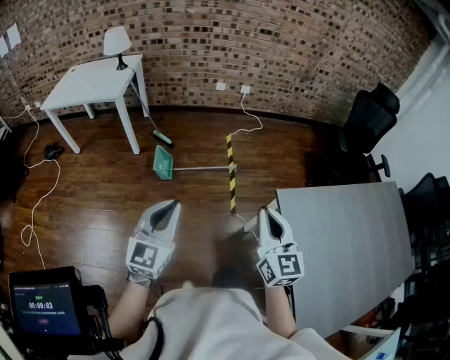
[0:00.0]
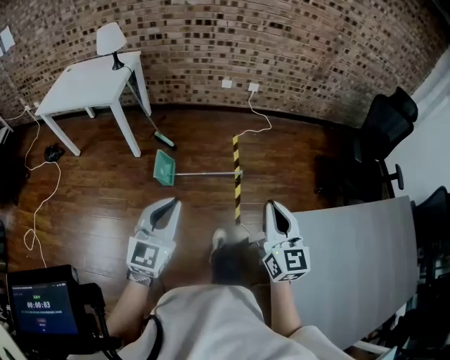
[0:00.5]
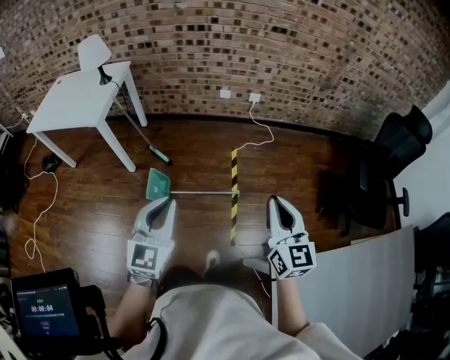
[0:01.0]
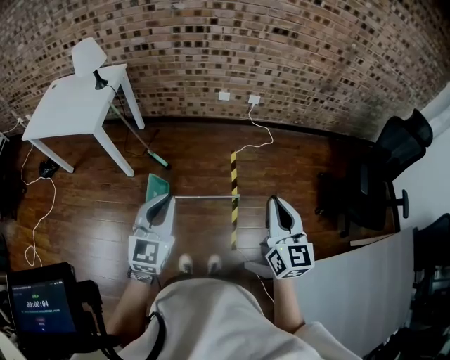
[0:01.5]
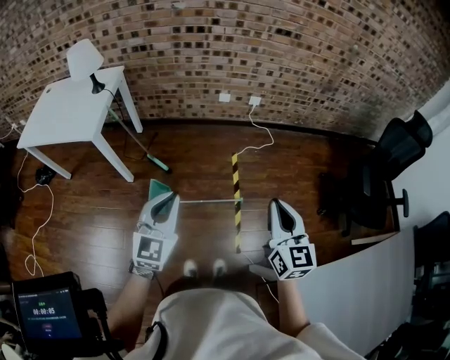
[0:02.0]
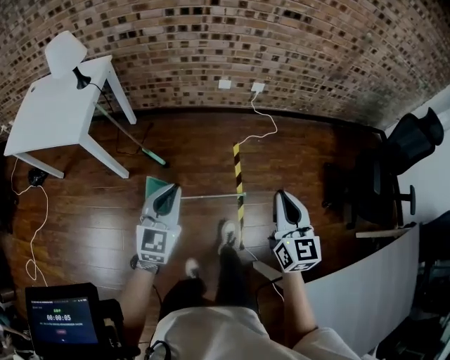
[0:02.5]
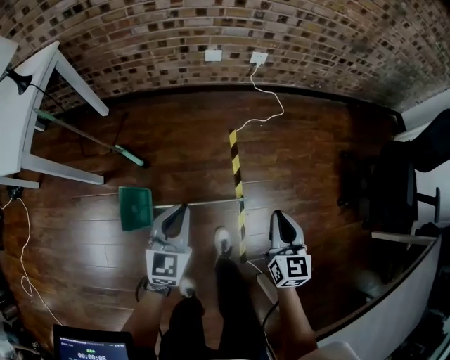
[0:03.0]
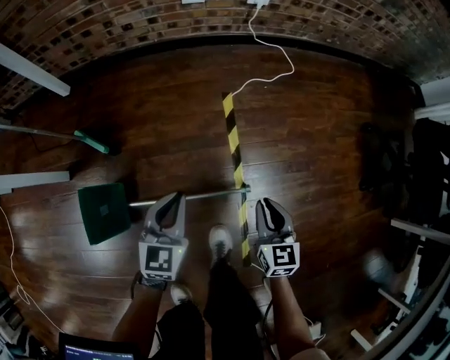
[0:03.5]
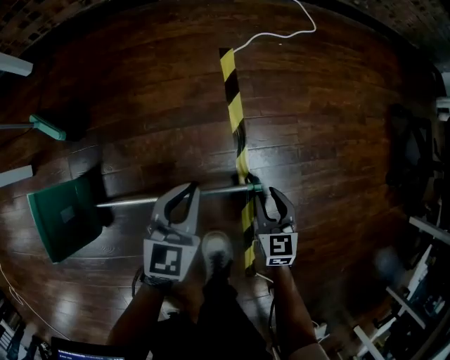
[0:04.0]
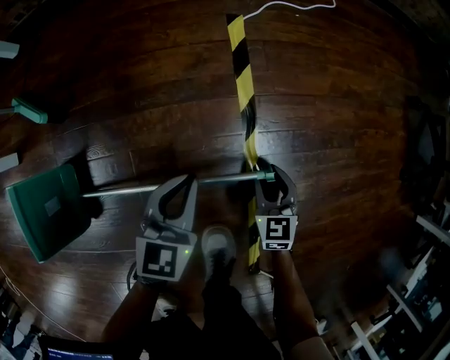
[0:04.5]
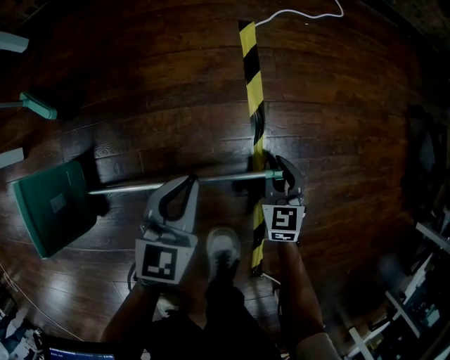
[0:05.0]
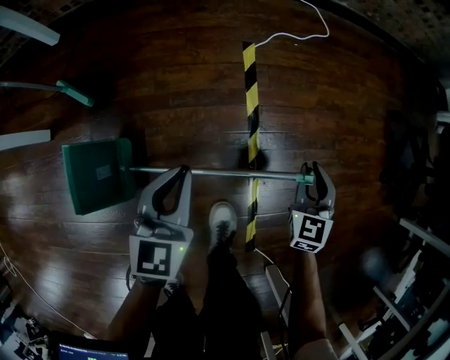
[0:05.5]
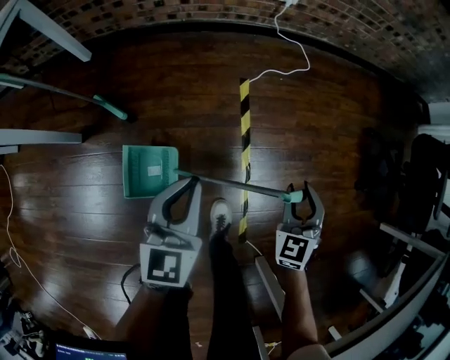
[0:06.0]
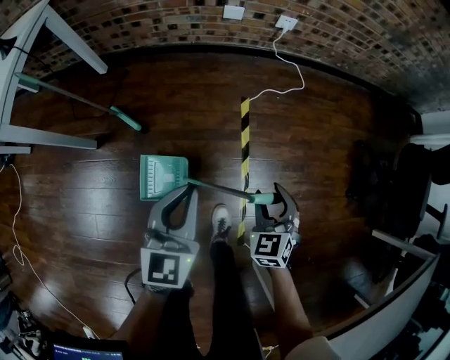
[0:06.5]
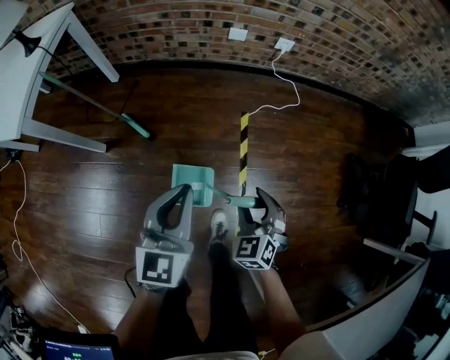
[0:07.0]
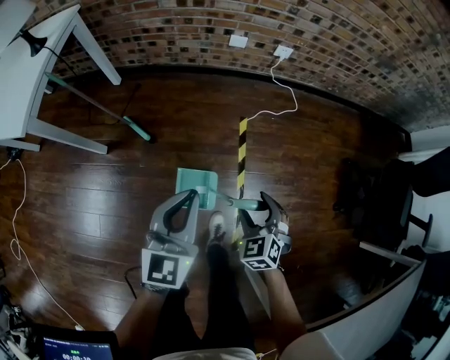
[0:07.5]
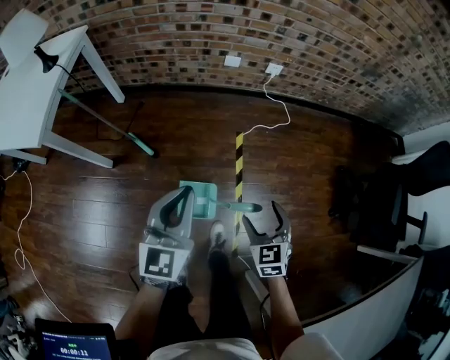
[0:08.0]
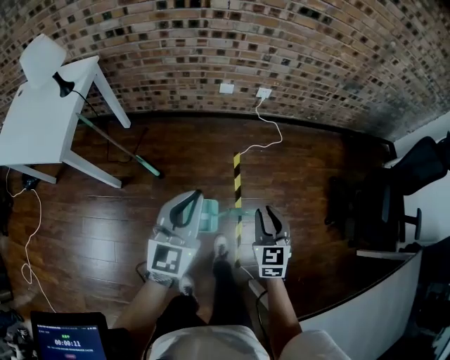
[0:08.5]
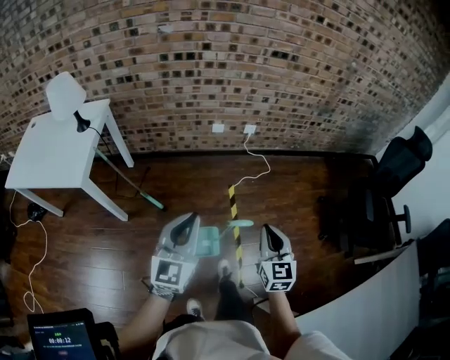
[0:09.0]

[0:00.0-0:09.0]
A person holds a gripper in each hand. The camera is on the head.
0:00.0 to 0:02.0: The two grippers travel together, forward, approximately 50 cm.
0:02.0 to 0:04.5: The grippers both shift downward by about 90 cm. The left gripper turns by about 30 degrees, while the right gripper tilts its fingers approximately 30 degrees downward, and opens up.
0:04.5 to 0:07.0: Both grippers move upward, some 60 cm. The right gripper rotates roughly 30 degrees; the left gripper changes its angle by roughly 20 degrees.
0:07.0 to 0:09.0: The two grippers go approximately 30 cm upward. The right gripper turns by some 40 degrees, and closes up.

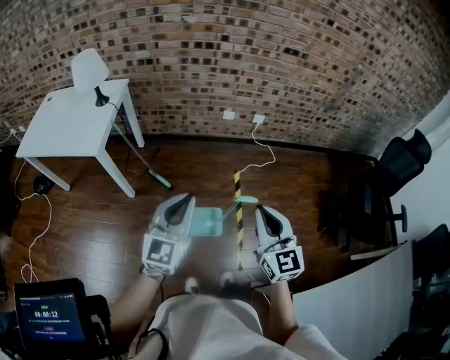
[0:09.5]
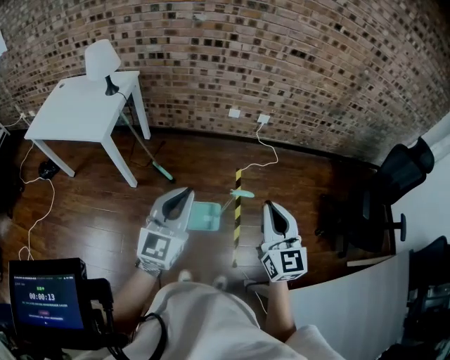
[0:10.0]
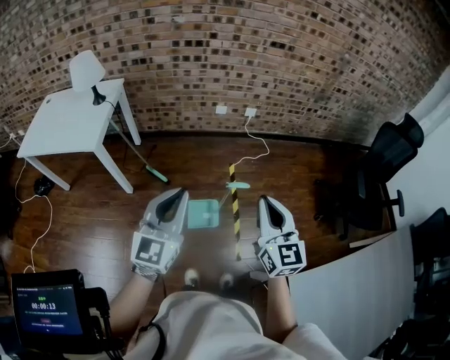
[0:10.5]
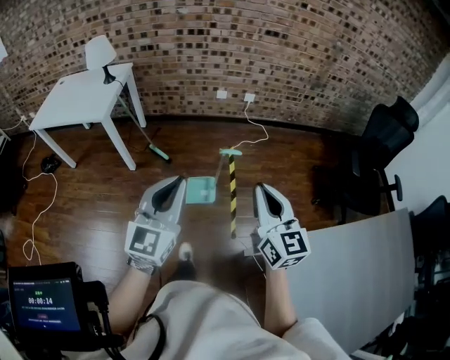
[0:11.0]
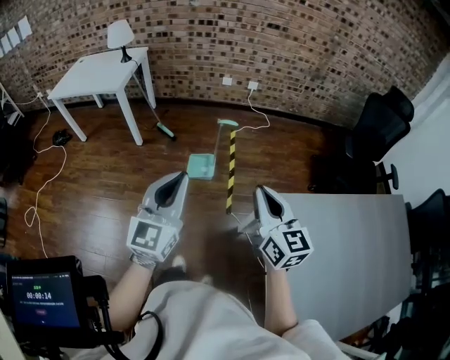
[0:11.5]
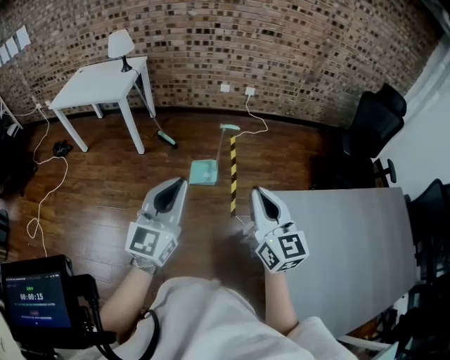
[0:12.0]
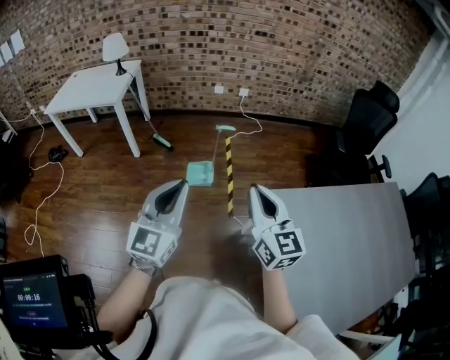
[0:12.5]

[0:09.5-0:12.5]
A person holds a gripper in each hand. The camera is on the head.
0:09.5 to 0:11.0: The grippers both shift backward by some 20 cm.
0:11.0 to 0:12.5: The two grippers go about 25 cm backward.

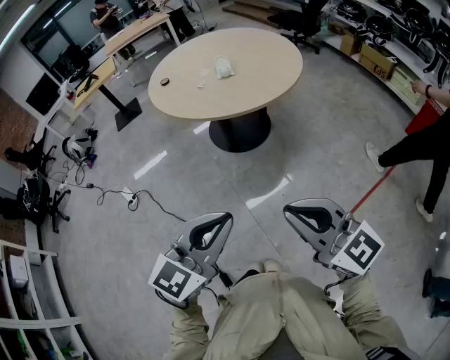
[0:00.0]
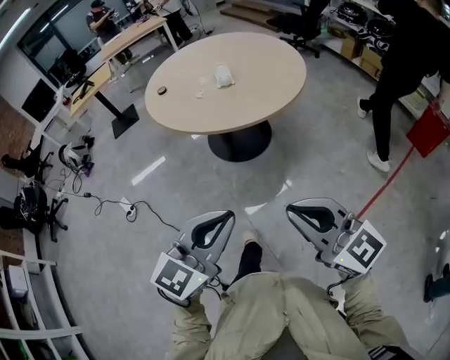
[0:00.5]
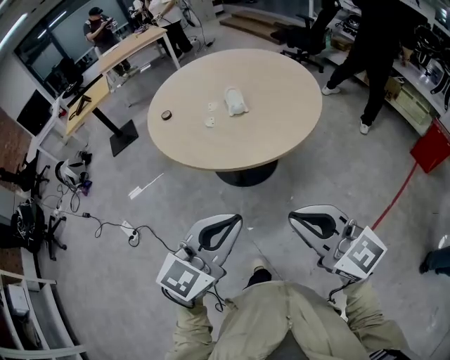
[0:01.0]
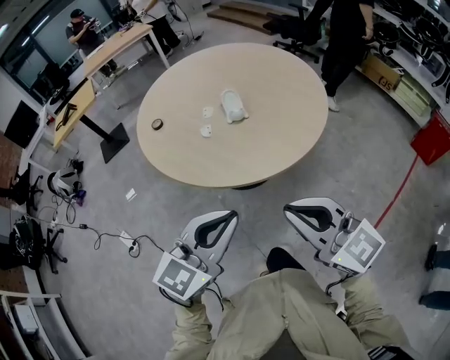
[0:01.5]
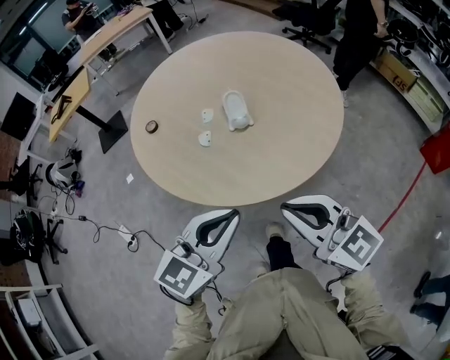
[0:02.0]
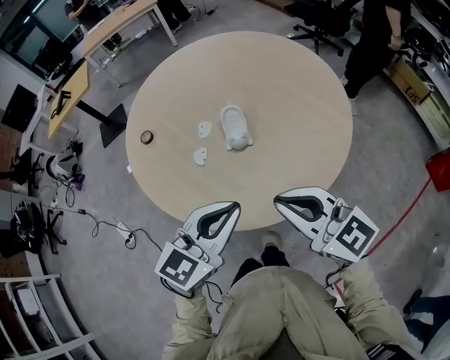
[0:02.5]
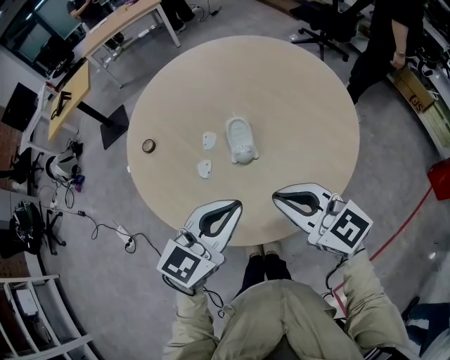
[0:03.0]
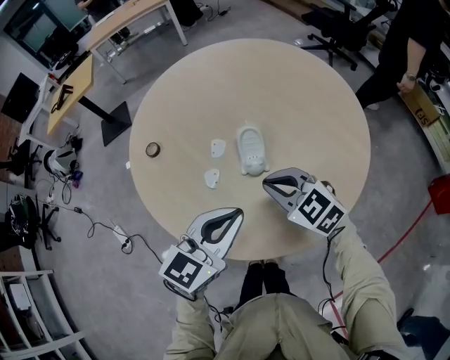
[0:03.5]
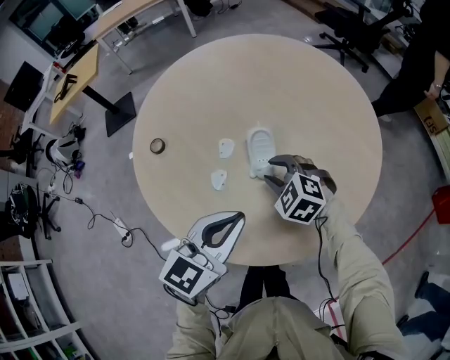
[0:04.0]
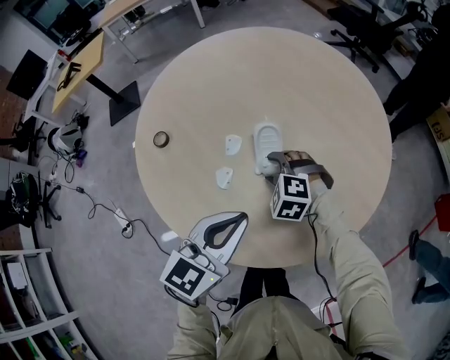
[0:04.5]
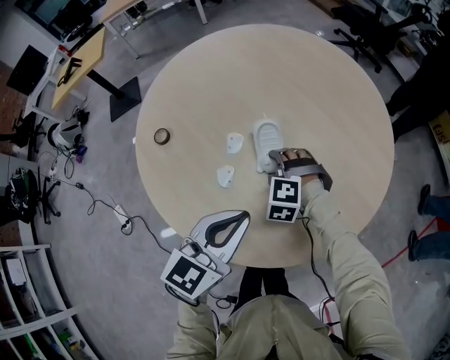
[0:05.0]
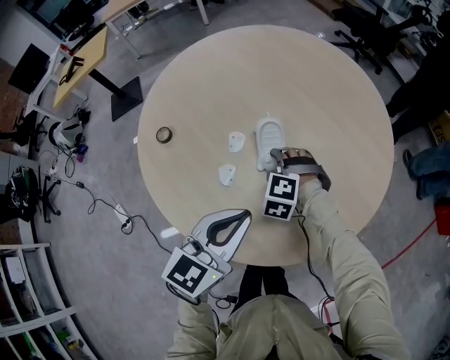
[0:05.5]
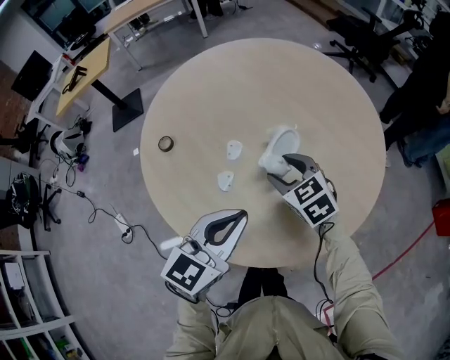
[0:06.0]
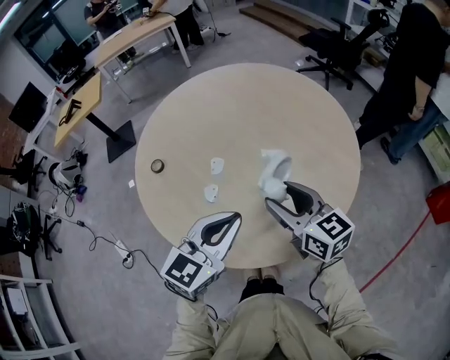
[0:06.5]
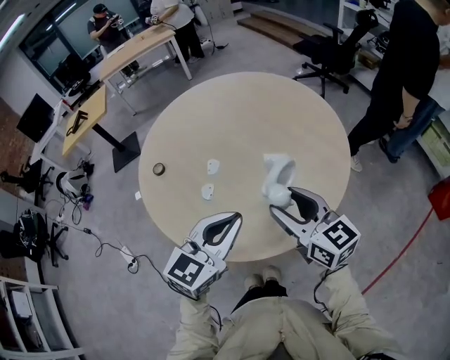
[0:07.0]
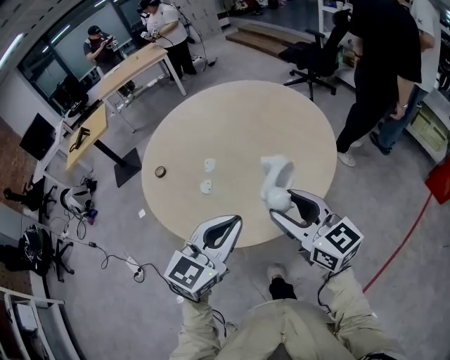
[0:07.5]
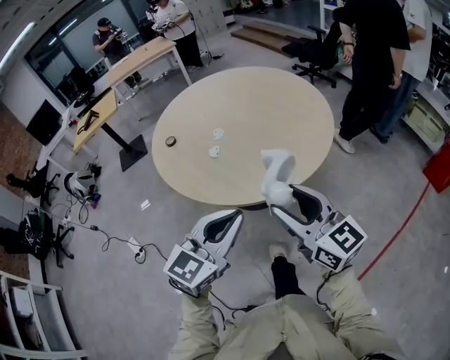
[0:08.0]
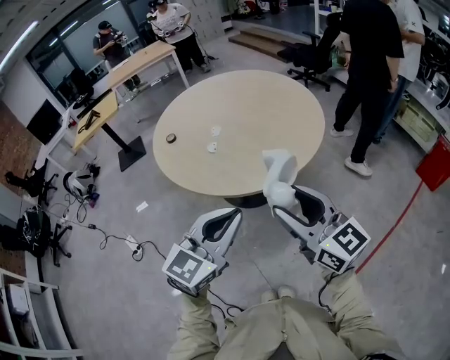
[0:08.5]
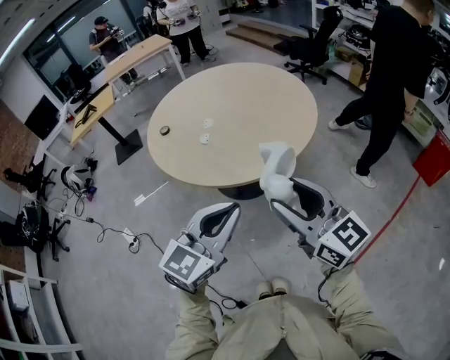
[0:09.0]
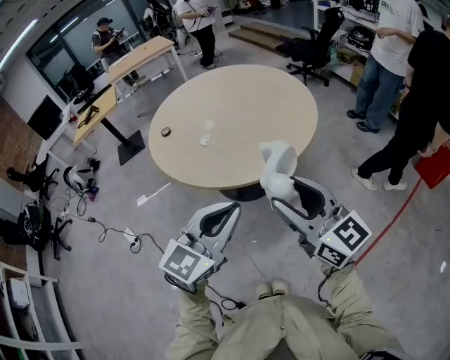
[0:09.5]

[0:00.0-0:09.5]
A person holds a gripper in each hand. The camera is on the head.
0:00.0 to 0:02.0: The two grippers travel together, forward, about 50 cm.
0:02.0 to 0:04.0: The right gripper shifts approximately 40 cm forward and downward, tilts its fingers approximately 40 degrees downward, and opens, while the left gripper goes approximately 20 cm forward.
0:04.0 to 0:05.5: The right gripper travels downward by approximately 5 cm, rotates about 30 degrees, and opens.
0:05.5 to 0:07.5: The right gripper shifts about 40 cm upward, backward and to the right, and angles its fingers upward, by roughly 60 degrees. The left gripper heads backward, upward and to the right, covering roughly 20 cm.
0:07.5 to 0:09.5: The two grippers go some 25 cm backward.

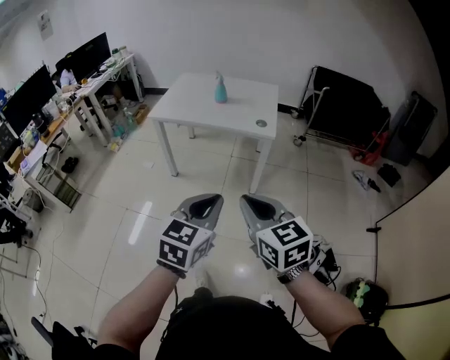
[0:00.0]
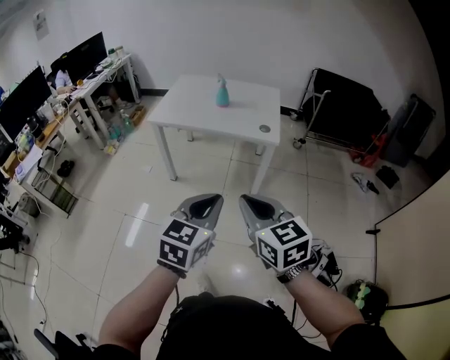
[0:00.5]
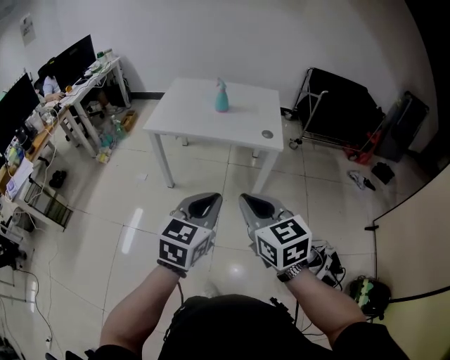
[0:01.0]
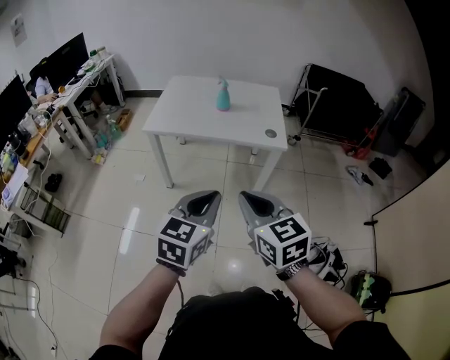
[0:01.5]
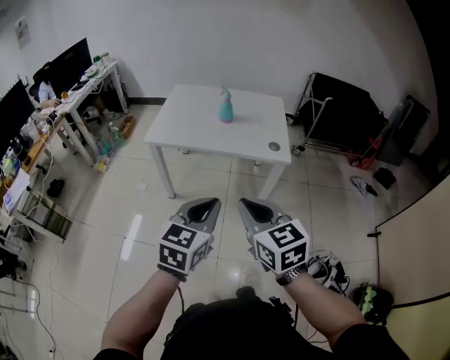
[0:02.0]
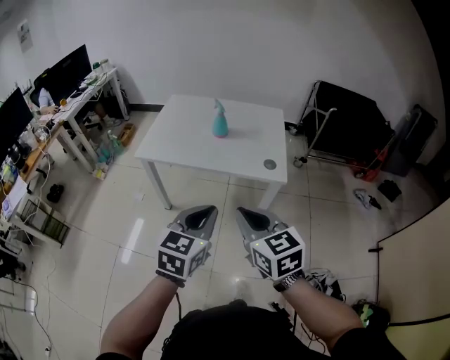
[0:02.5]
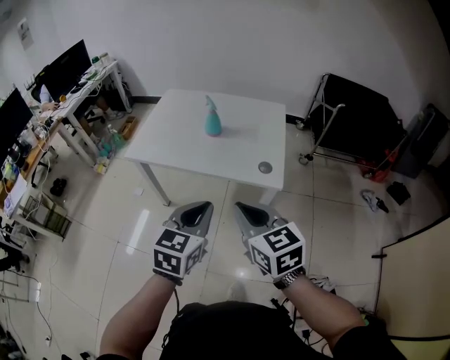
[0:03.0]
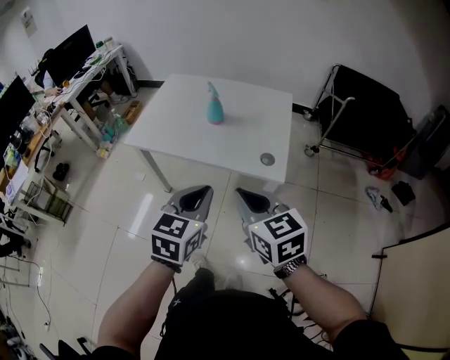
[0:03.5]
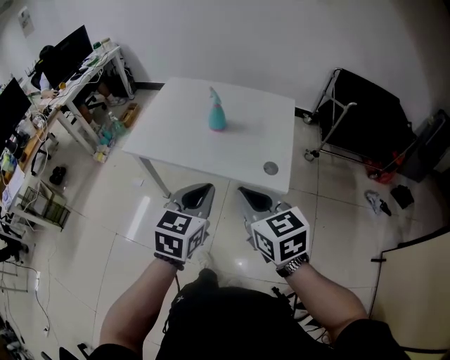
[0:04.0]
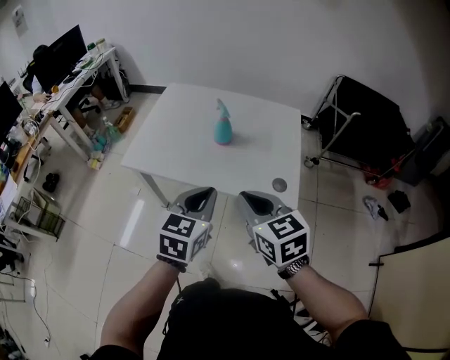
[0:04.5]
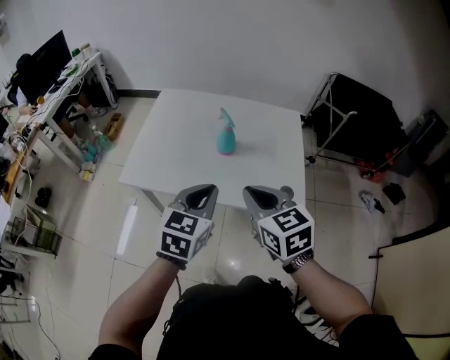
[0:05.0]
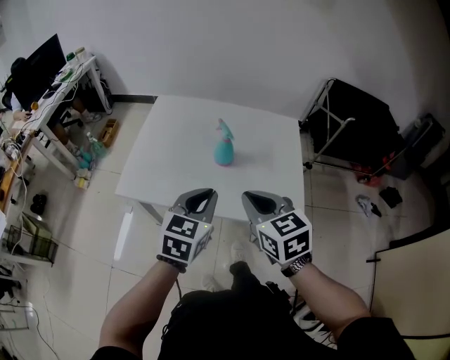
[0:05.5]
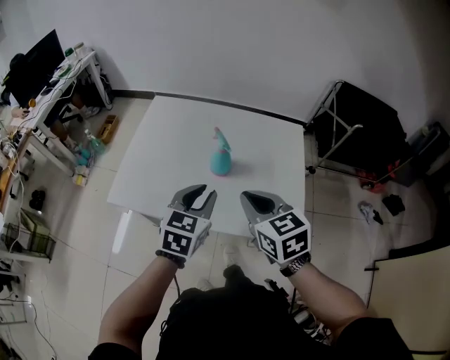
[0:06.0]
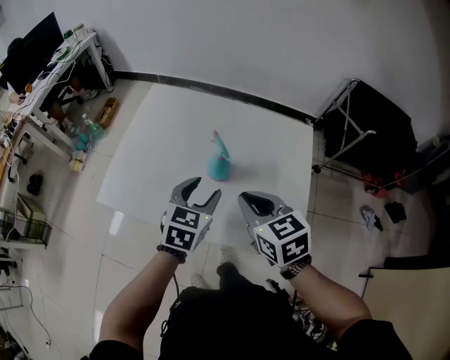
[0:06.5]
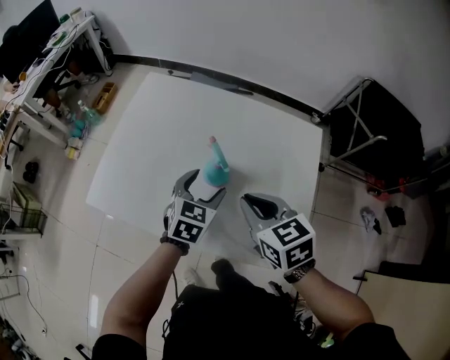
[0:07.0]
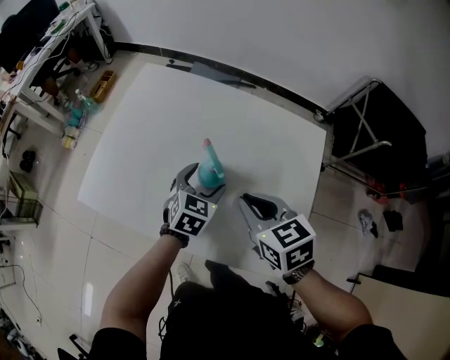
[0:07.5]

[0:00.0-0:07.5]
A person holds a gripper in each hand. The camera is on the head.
0:00.0 to 0:02.0: The grippers both shift forward and to the left by roughly 20 cm.
0:02.0 to 0:04.0: The grippers both shift forward and to the right by approximately 25 cm.
0:04.0 to 0:05.5: The right gripper is displaced forward by about 15 cm. Meanwhile the left gripper goes some 15 cm forward and to the left.
0:05.5 to 0:07.5: The left gripper moves forward and downward, approximately 30 cm, and opens up. Meanwhile the right gripper moves forward, downward and to the right, roughly 20 cm.
